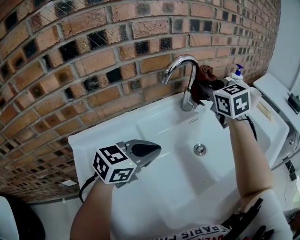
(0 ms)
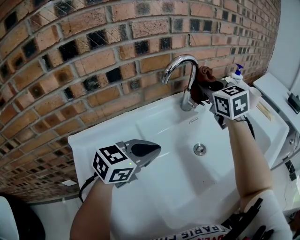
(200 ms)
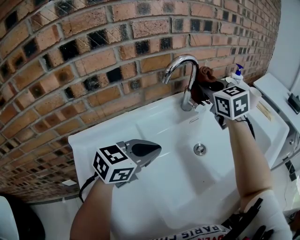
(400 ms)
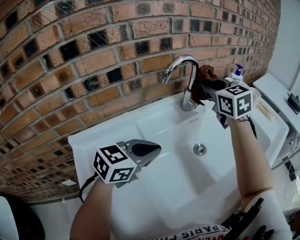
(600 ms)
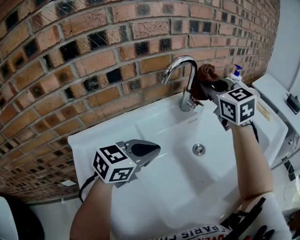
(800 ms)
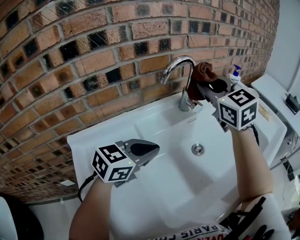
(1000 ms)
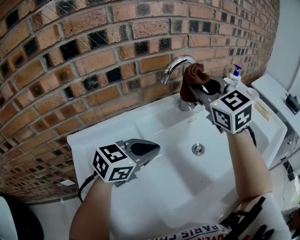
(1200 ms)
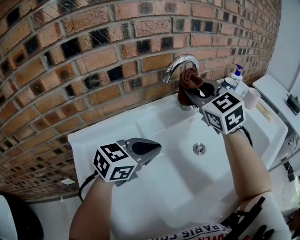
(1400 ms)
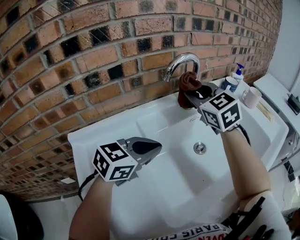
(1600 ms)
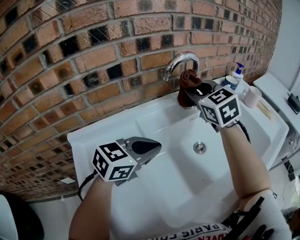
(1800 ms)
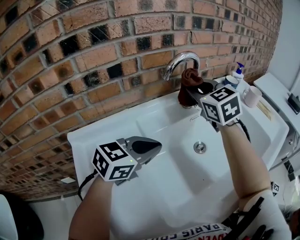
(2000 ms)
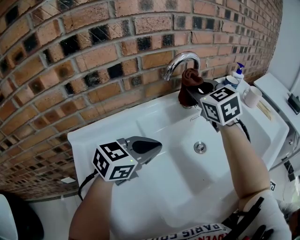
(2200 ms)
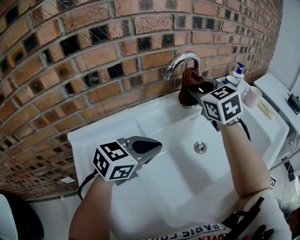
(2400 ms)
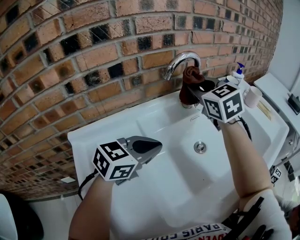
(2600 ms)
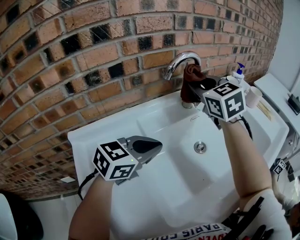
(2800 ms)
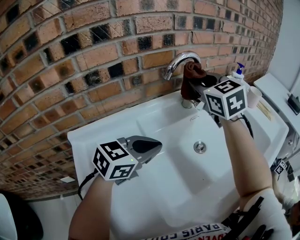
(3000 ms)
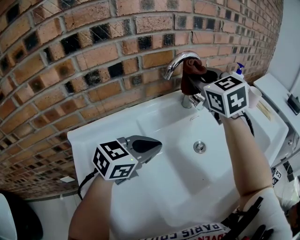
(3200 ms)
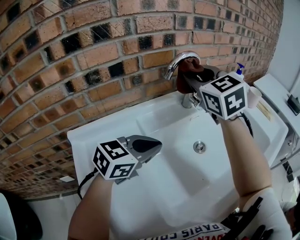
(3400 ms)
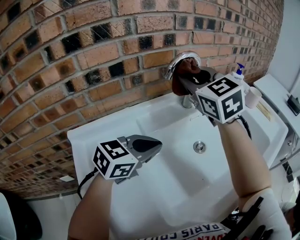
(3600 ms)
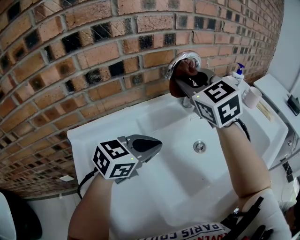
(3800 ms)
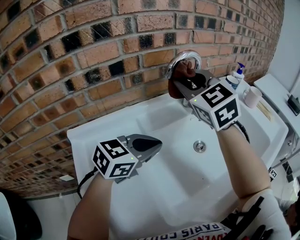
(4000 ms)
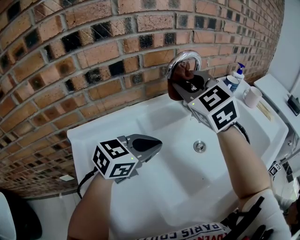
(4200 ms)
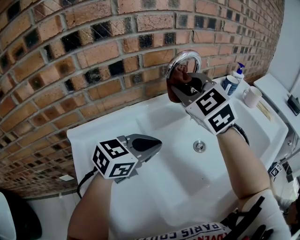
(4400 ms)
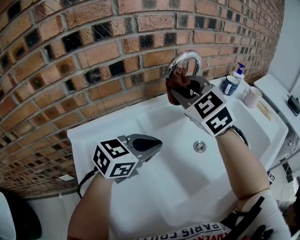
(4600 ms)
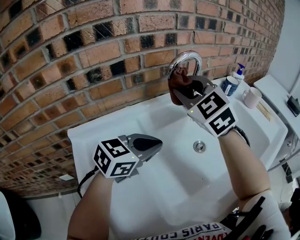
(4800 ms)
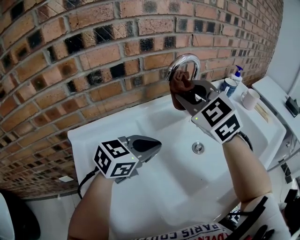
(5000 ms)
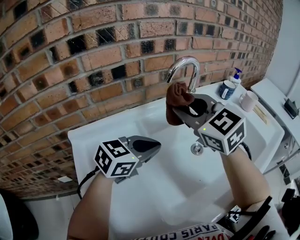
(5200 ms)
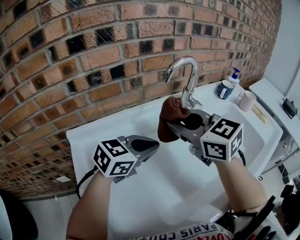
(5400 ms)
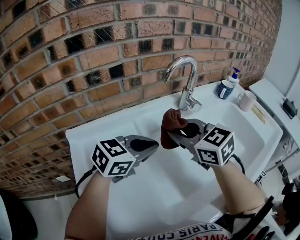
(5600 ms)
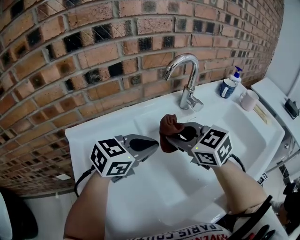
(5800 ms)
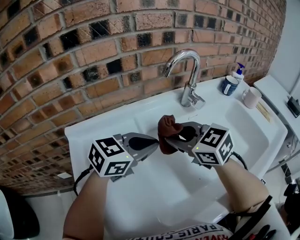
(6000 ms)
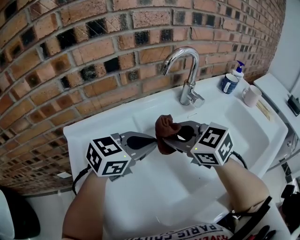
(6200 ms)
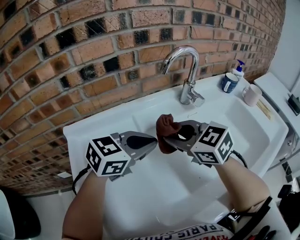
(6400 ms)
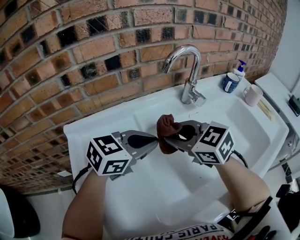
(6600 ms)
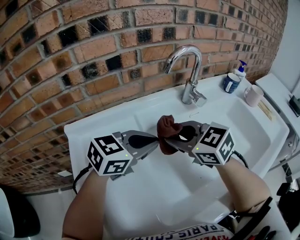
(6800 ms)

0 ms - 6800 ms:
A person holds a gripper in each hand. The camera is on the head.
0 ms - 1400 ms: The right gripper moves backward and to the left, about 10 cm.
1400 ms - 2800 ms: The grippers move only a little.
2800 ms - 4000 ms: The right gripper moves backward, approximately 5 cm.
4000 ms - 5400 ms: The right gripper moves backward and downward, roughly 10 cm, and swivels roughly 30 degrees.
5400 ms - 6800 ms: The right gripper moves downward, about 10 cm.

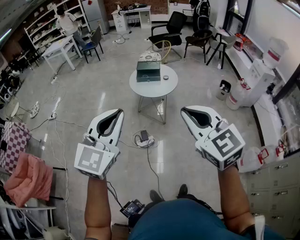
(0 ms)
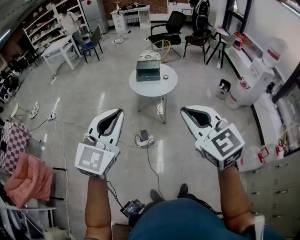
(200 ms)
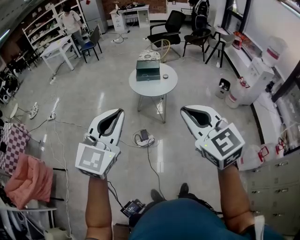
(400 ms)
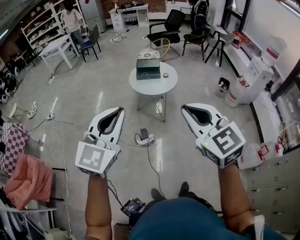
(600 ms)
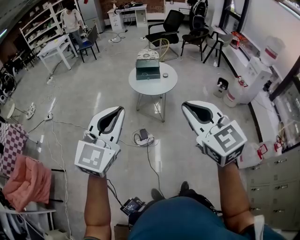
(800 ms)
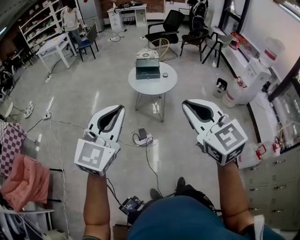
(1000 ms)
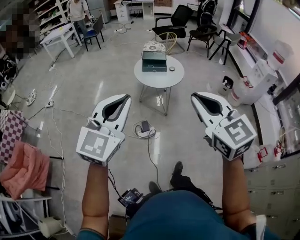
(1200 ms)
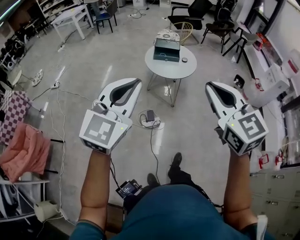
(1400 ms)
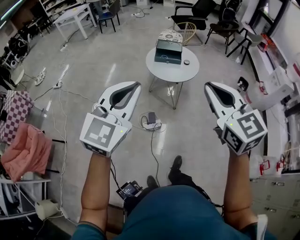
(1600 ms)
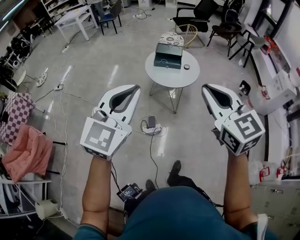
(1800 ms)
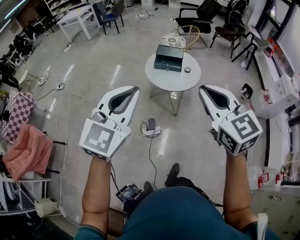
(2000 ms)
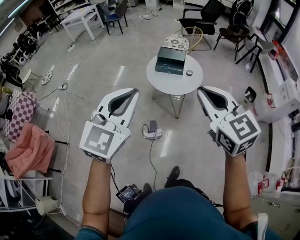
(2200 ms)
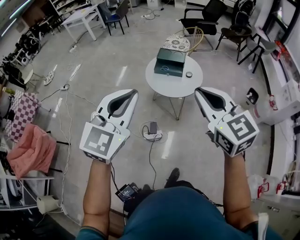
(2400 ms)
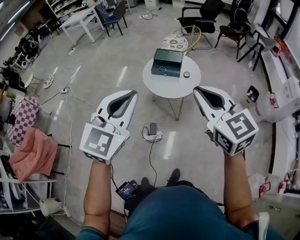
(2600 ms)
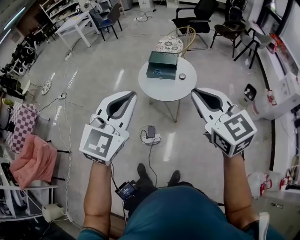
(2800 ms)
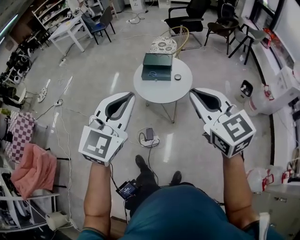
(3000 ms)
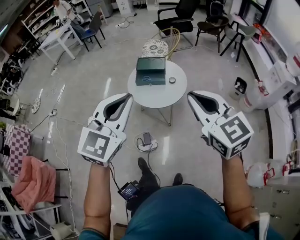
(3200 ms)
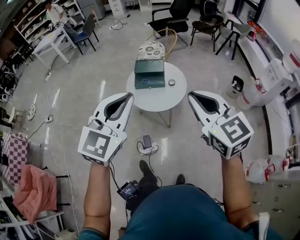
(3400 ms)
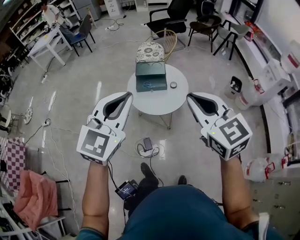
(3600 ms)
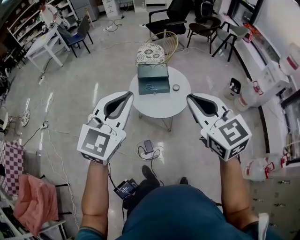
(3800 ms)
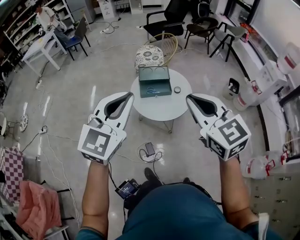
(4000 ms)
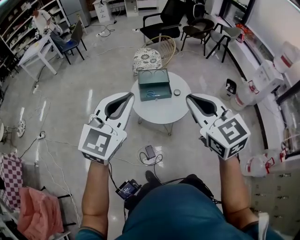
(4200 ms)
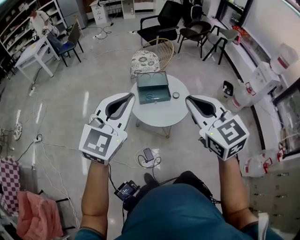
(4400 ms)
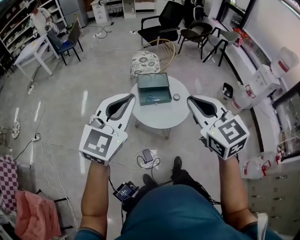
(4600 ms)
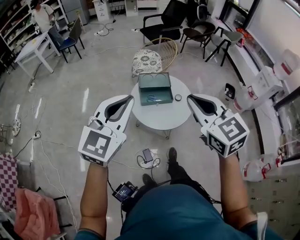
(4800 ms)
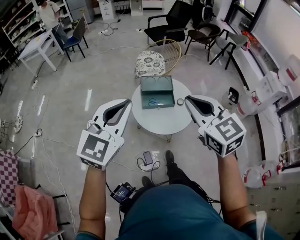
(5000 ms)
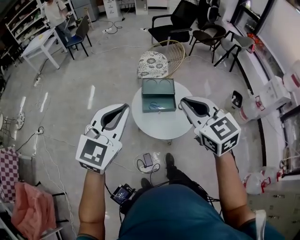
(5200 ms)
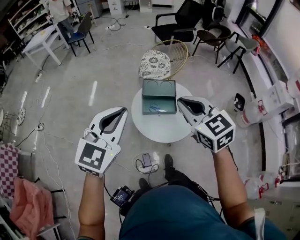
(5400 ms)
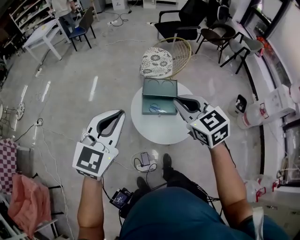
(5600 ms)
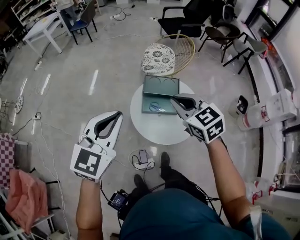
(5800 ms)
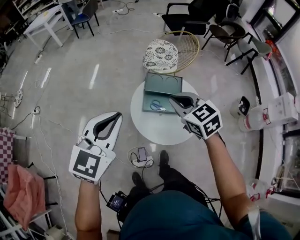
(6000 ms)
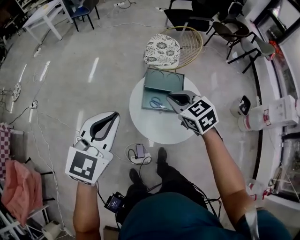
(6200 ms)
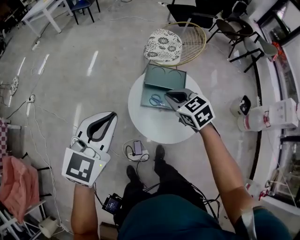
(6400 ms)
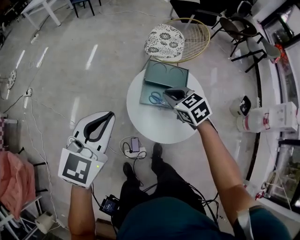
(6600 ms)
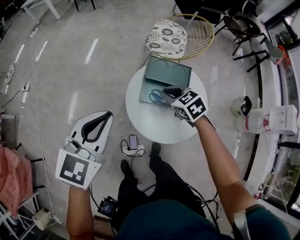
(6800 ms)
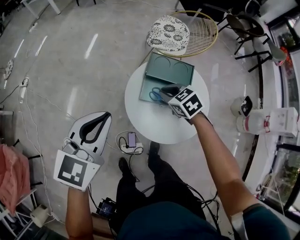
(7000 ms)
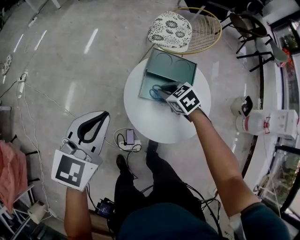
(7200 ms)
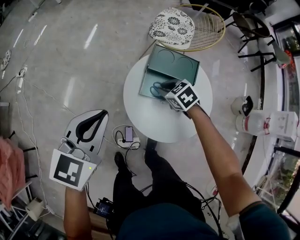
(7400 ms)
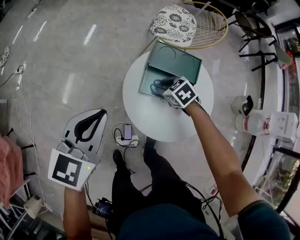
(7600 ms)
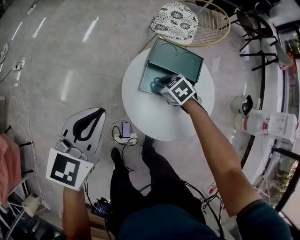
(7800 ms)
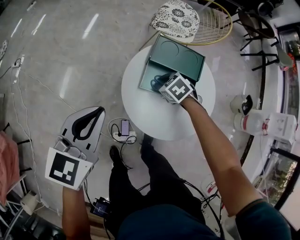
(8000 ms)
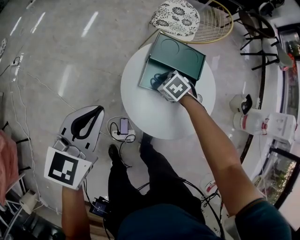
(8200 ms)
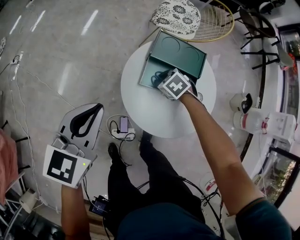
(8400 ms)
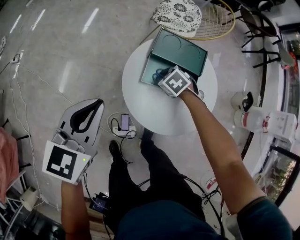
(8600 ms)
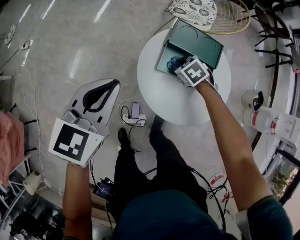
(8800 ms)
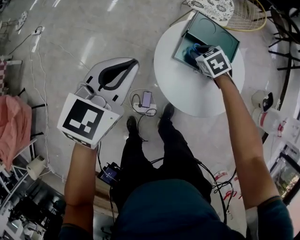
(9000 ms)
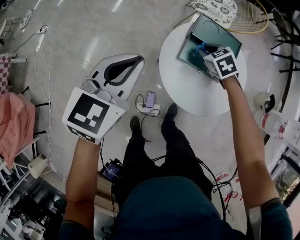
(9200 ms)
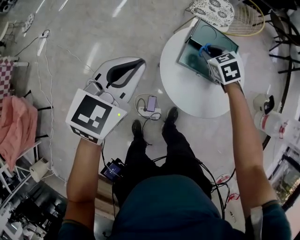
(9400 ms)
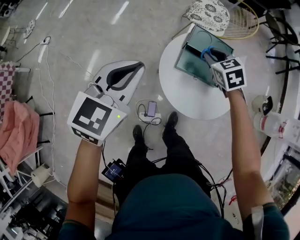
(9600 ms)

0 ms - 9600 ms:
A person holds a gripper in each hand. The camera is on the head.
0 ms - 1600 ms: The grippers both shift forward by roughly 15 cm.
1600 ms - 3200 ms: Both grippers move forward and to the right, some 30 cm.
3200 ms - 4800 ms: Both grippers move to the left and forward, approximately 30 cm.
4800 ms - 6400 ms: The right gripper moves forward and downward, some 40 cm, and changes its angle by approximately 30 degrees. The left gripper moves forward and downward, some 25 cm, and swivels roughly 20 degrees.
6400 ms - 8000 ms: The left gripper shifts approximately 20 cm downward, while the right gripper travels downward by roughly 30 cm, and changes its angle by about 30 degrees.
8000 ms - 9600 ms: The right gripper travels upward by about 20 cm, and turns by approximately 20 degrees. Meanwhile the left gripper goes approximately 10 cm upward.

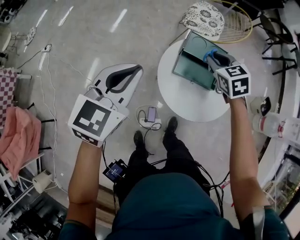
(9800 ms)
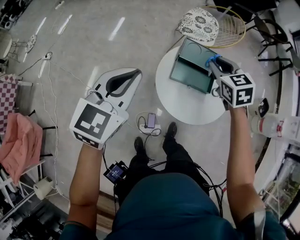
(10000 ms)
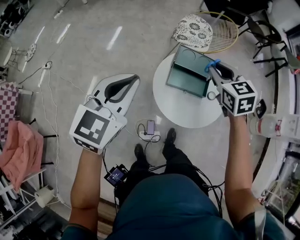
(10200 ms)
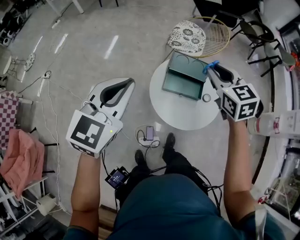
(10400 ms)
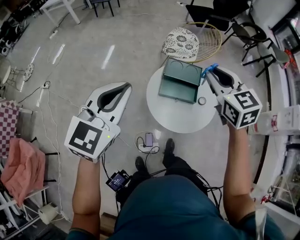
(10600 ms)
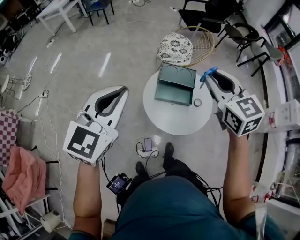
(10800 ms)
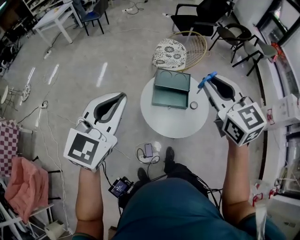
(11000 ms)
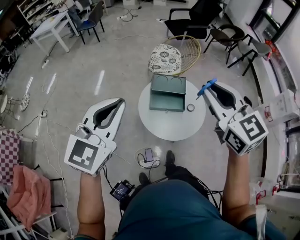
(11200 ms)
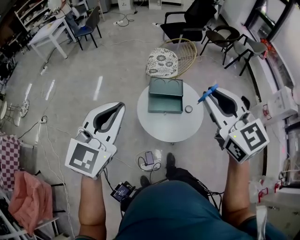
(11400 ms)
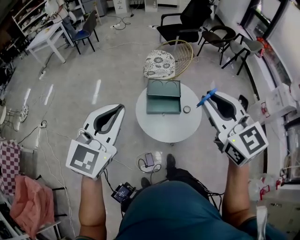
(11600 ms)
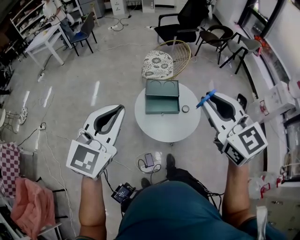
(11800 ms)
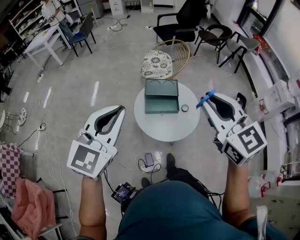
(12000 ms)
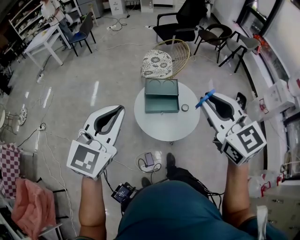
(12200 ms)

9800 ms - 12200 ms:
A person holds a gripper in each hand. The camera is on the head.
9800 ms - 11000 ms: The right gripper travels upward and backward by about 35 cm, and changes its angle by about 30 degrees. Meanwhile the left gripper shifts roughly 20 cm upward.
11000 ms - 12200 ms: The left gripper shifts roughly 5 cm backward. Meanwhile the right gripper travels backward by some 10 cm.

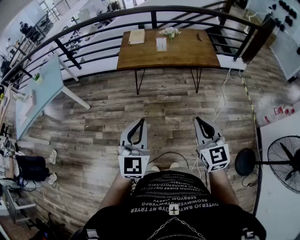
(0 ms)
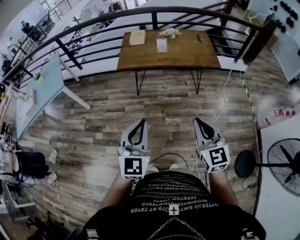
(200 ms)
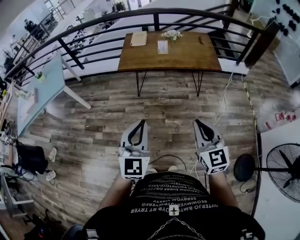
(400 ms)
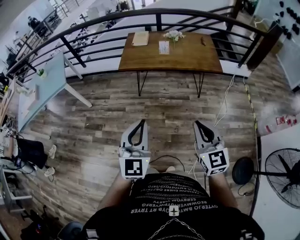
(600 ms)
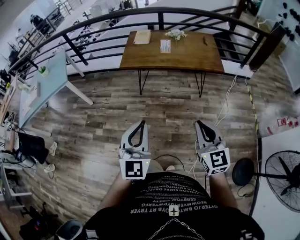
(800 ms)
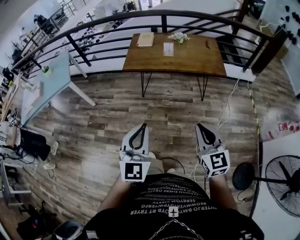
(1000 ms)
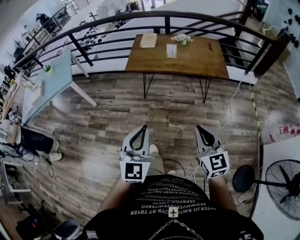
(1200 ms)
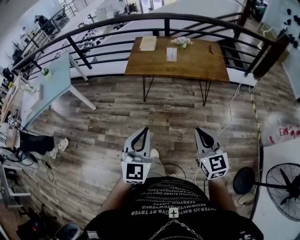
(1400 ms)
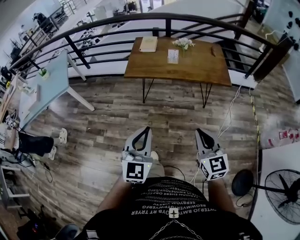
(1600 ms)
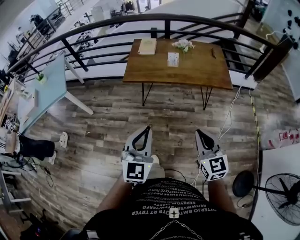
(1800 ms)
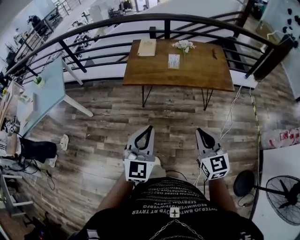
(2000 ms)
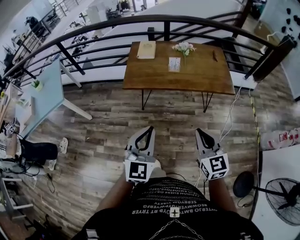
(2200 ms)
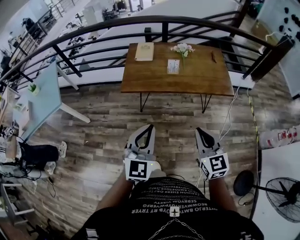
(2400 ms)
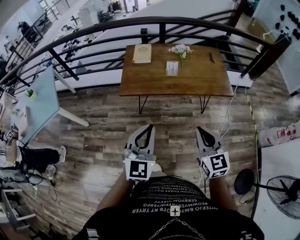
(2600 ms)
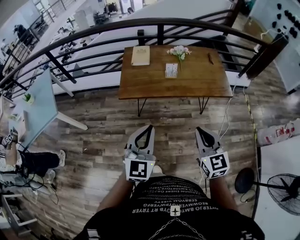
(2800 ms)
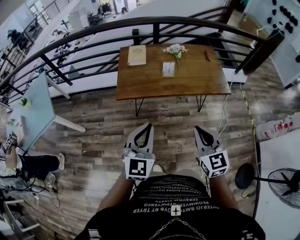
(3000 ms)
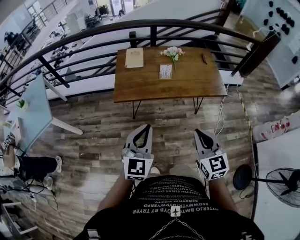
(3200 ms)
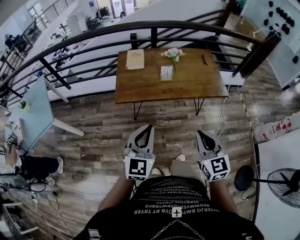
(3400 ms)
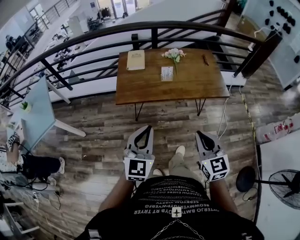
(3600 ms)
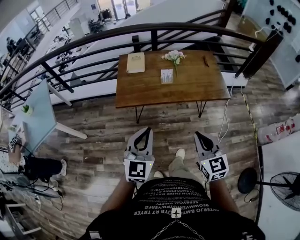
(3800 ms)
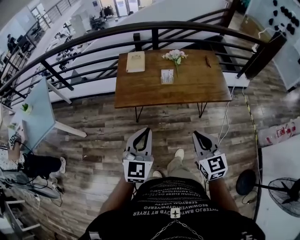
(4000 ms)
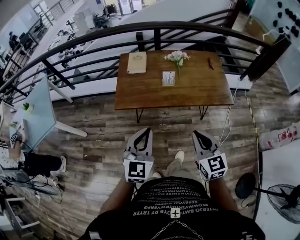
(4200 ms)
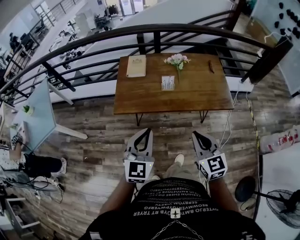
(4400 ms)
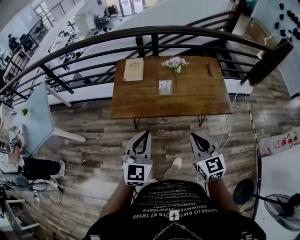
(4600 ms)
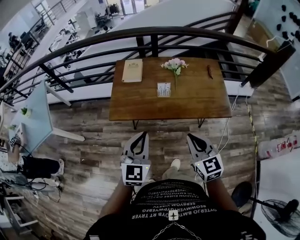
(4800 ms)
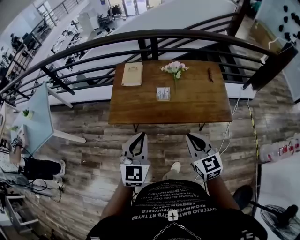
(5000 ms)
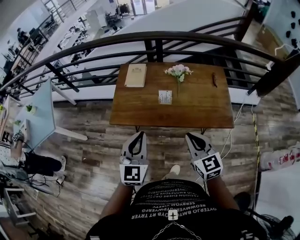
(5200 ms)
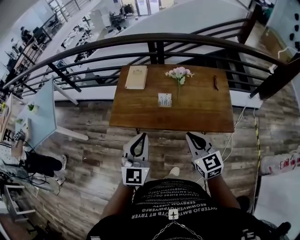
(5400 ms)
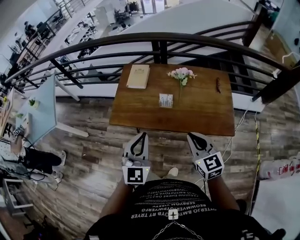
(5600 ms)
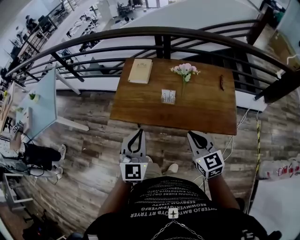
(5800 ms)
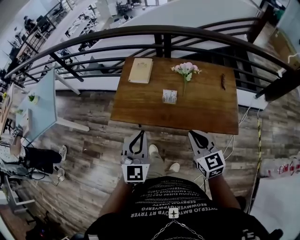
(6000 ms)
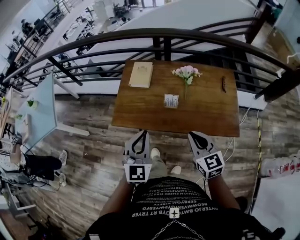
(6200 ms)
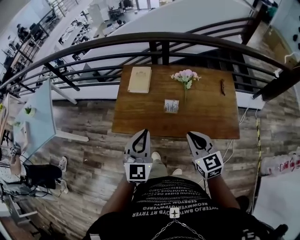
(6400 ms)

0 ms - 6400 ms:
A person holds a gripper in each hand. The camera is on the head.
0 ms - 1600 ms: Both grippers move forward, about 10 cm.
1600 ms - 3200 ms: The right gripper moves forward and to the left, some 20 cm, while the left gripper shifts some 25 cm forward.
3200 ms - 4800 ms: The right gripper travels forward by approximately 15 cm. The left gripper goes some 15 cm forward and to the right.
4800 ms - 6400 ms: Both grippers move forward, about 15 cm.
